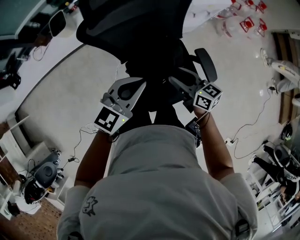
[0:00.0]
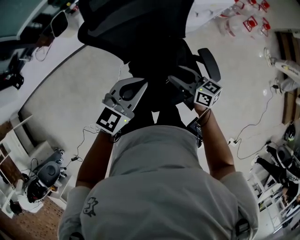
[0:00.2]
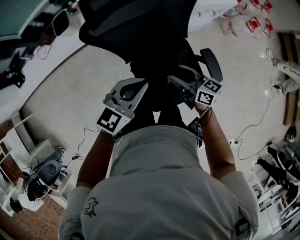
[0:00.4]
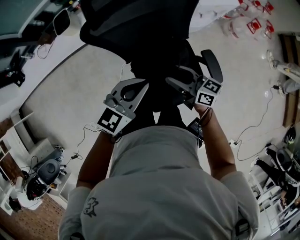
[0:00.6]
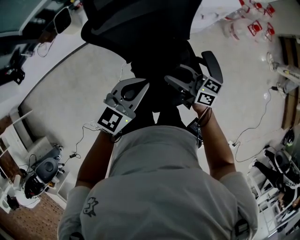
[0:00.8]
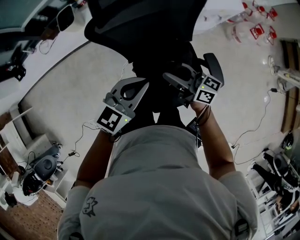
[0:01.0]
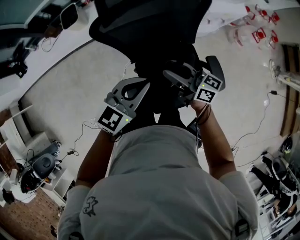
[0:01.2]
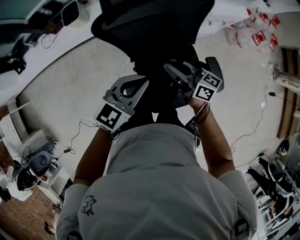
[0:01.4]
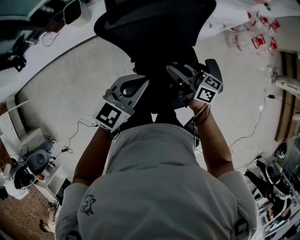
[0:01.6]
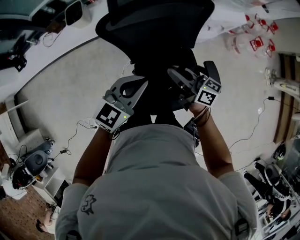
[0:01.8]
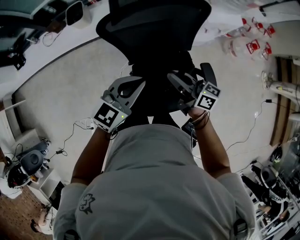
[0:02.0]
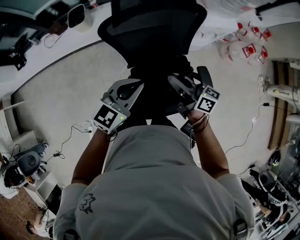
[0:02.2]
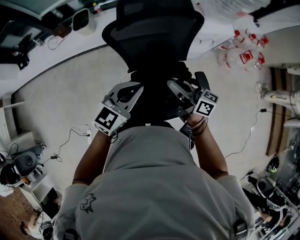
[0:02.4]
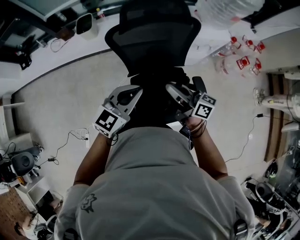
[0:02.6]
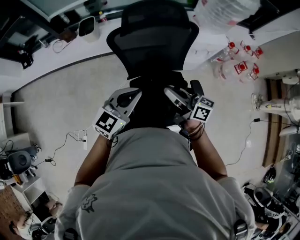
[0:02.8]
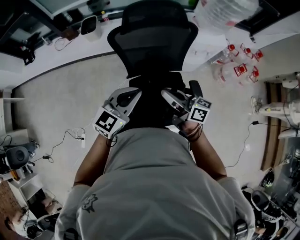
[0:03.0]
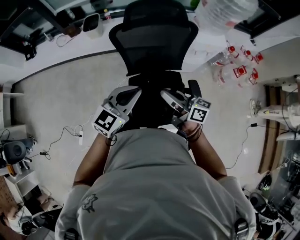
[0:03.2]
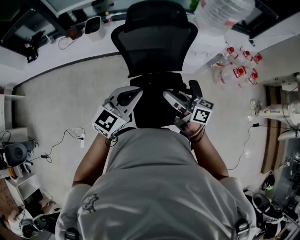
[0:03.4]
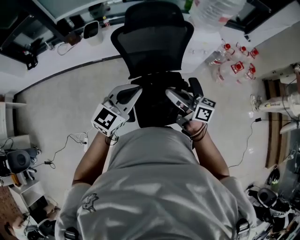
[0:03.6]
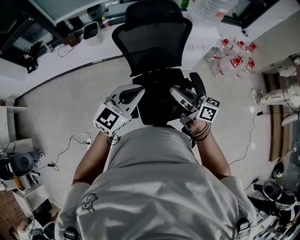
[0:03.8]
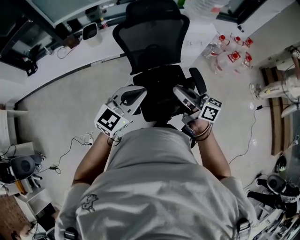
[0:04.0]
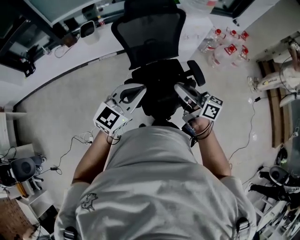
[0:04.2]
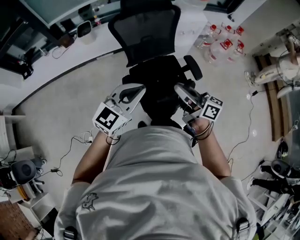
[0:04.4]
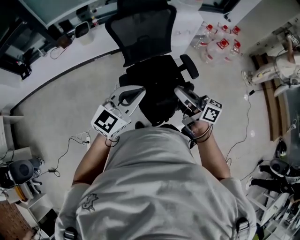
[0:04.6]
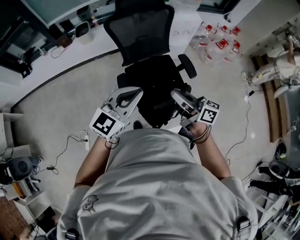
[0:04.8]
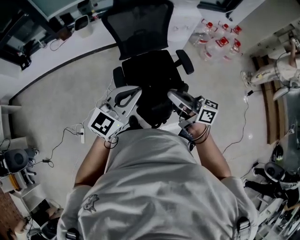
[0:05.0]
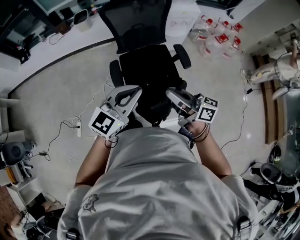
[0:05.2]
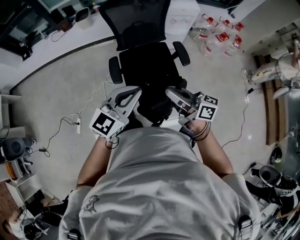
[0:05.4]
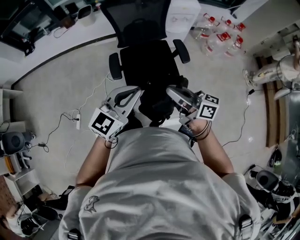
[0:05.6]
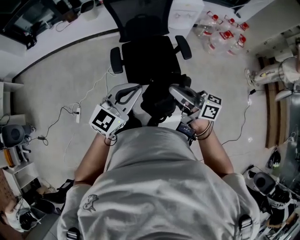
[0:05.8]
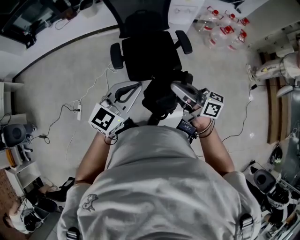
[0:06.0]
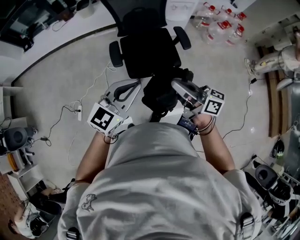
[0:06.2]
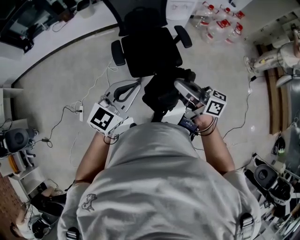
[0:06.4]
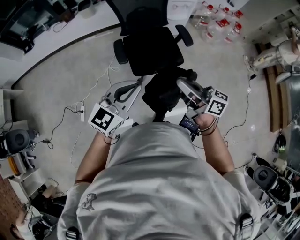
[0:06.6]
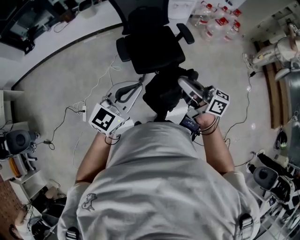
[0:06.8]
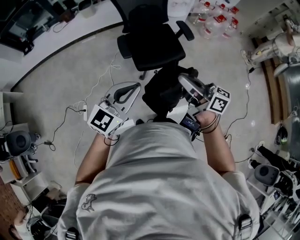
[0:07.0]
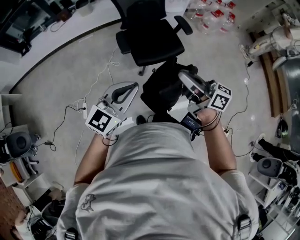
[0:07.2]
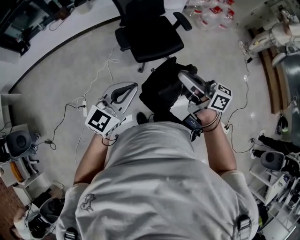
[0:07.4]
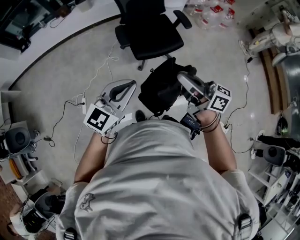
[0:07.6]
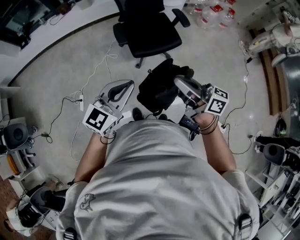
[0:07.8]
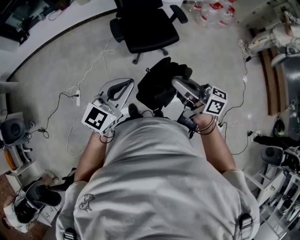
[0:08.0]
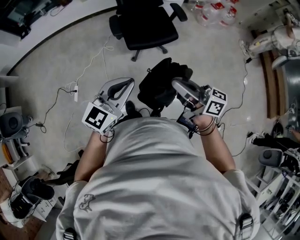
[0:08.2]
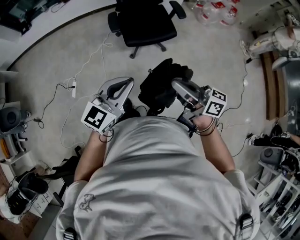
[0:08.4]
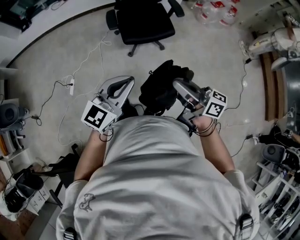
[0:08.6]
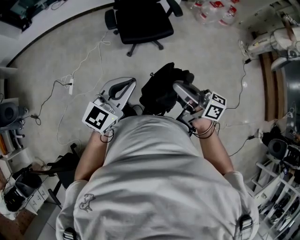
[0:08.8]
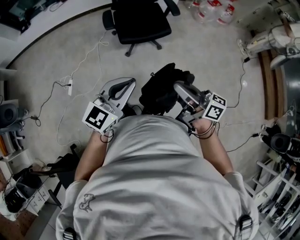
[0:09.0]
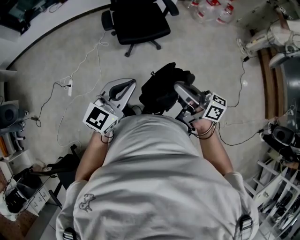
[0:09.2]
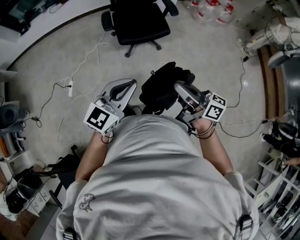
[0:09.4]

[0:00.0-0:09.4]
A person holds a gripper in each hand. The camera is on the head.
0:00.0 to 0:01.6: The right gripper travels to the left, forward and upward by roughly 10 cm, rotates approximately 20 degrees, and closes.
0:01.6 to 0:03.2: The grippers both shift backward and upward by roughly 15 cm.
0:03.2 to 0:04.8: The grippers both shift backward by some 25 cm.
0:04.8 to 0:06.2: The left gripper moves backward, about 15 cm. The right gripper is displaced backward and to the right by roughly 20 cm.
0:06.2 to 0:07.8: The grippers both shift backward and to the left by about 20 cm.
0:07.8 to 0:09.4: The two grippers go approximately 20 cm to the right and backward.

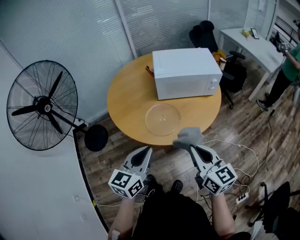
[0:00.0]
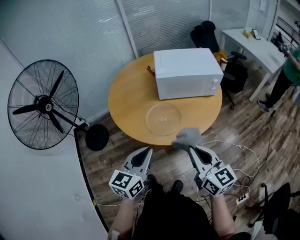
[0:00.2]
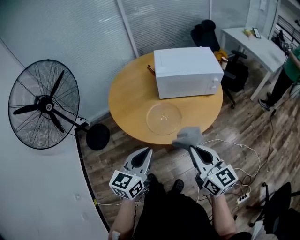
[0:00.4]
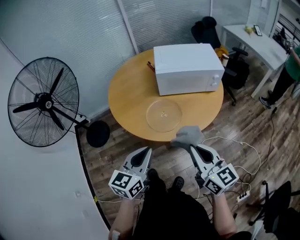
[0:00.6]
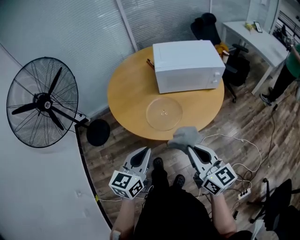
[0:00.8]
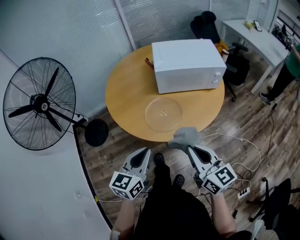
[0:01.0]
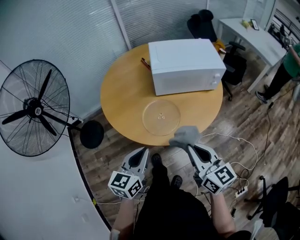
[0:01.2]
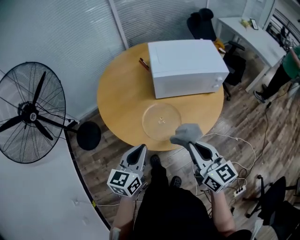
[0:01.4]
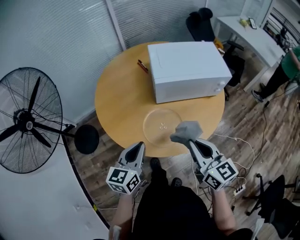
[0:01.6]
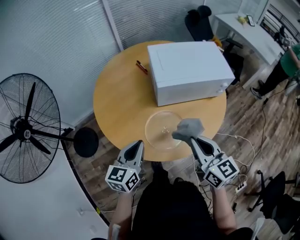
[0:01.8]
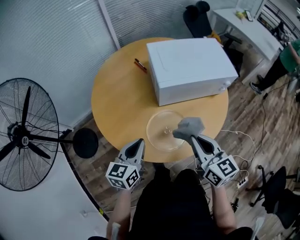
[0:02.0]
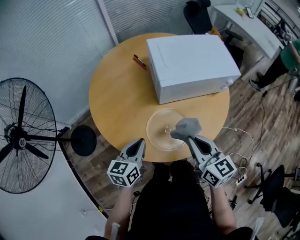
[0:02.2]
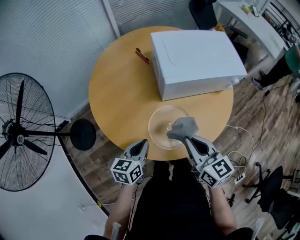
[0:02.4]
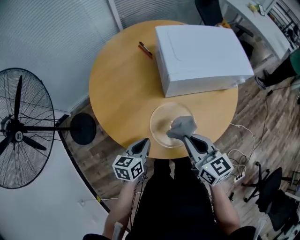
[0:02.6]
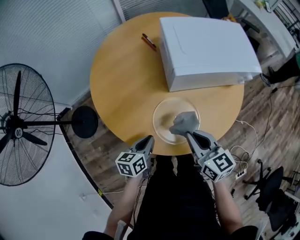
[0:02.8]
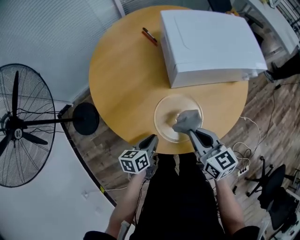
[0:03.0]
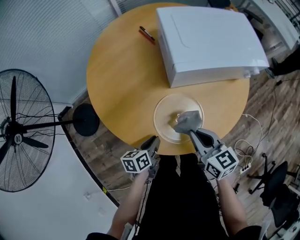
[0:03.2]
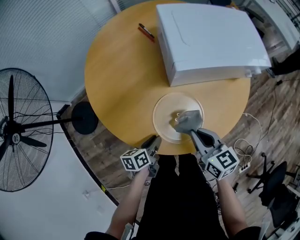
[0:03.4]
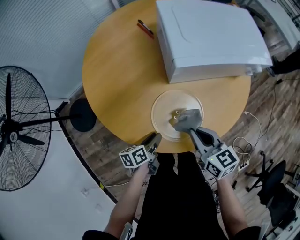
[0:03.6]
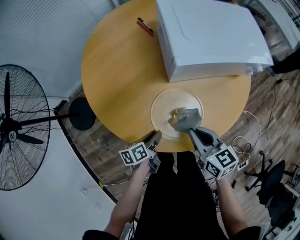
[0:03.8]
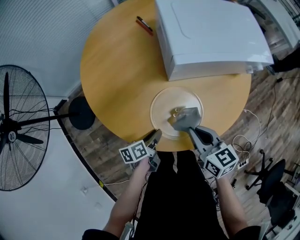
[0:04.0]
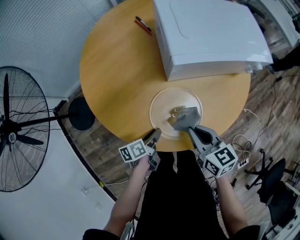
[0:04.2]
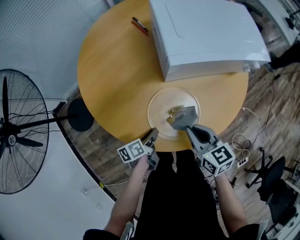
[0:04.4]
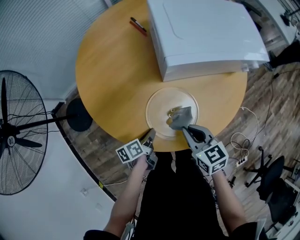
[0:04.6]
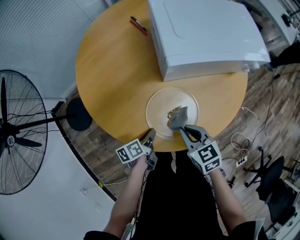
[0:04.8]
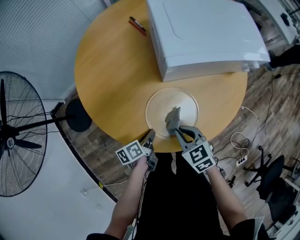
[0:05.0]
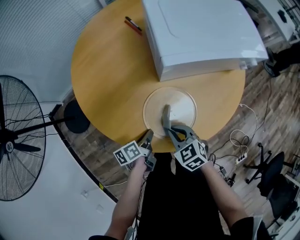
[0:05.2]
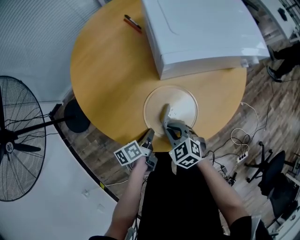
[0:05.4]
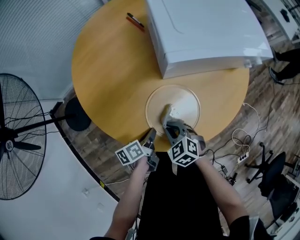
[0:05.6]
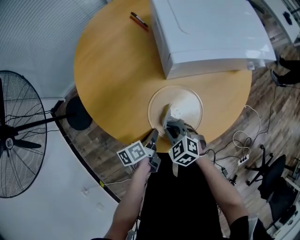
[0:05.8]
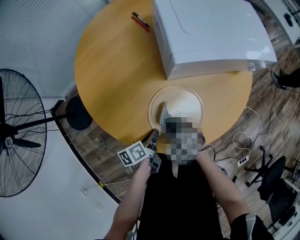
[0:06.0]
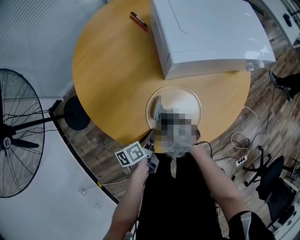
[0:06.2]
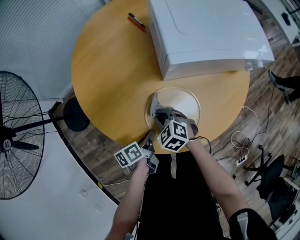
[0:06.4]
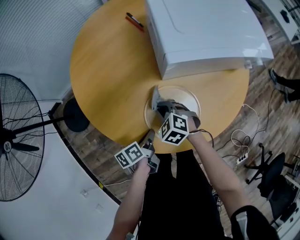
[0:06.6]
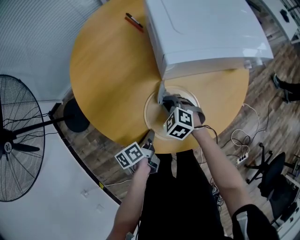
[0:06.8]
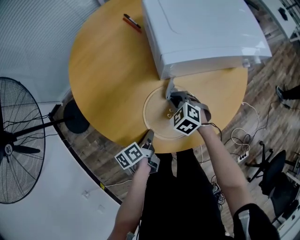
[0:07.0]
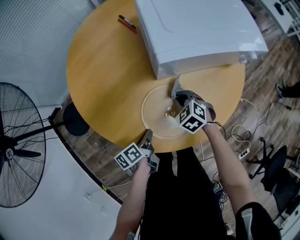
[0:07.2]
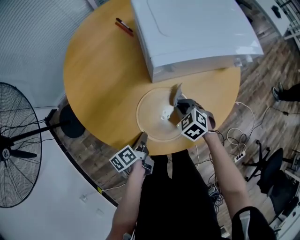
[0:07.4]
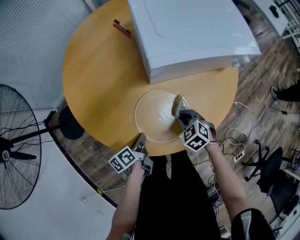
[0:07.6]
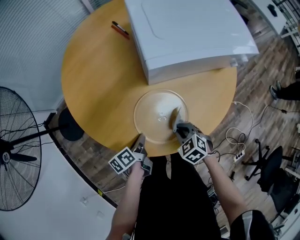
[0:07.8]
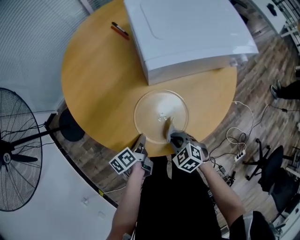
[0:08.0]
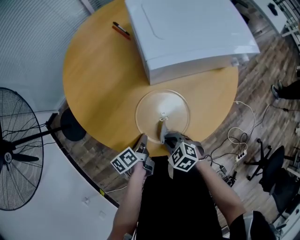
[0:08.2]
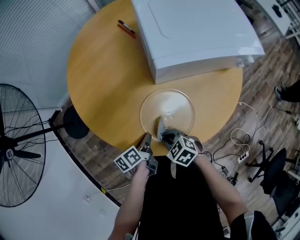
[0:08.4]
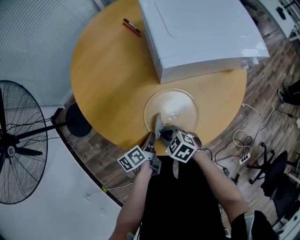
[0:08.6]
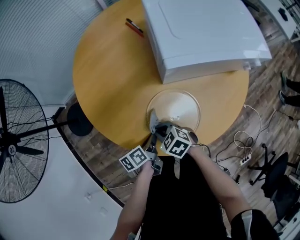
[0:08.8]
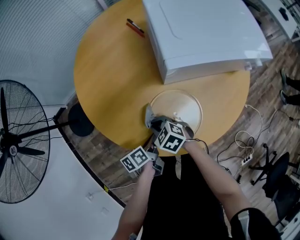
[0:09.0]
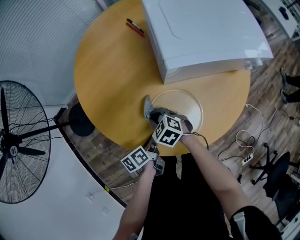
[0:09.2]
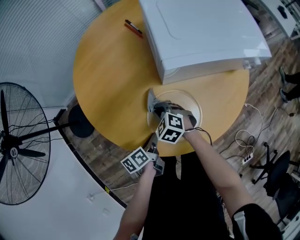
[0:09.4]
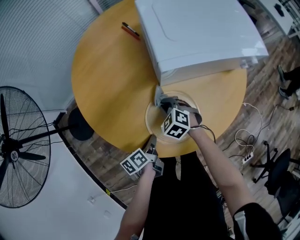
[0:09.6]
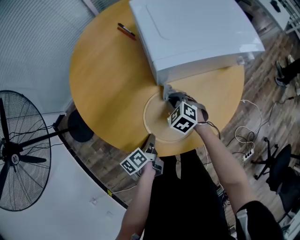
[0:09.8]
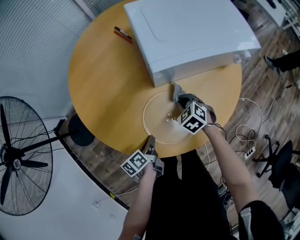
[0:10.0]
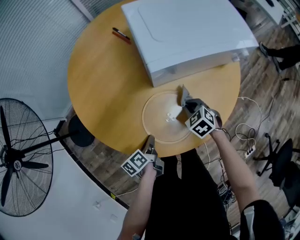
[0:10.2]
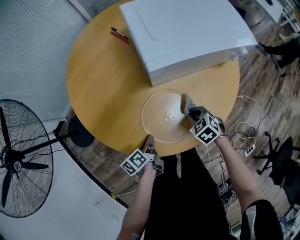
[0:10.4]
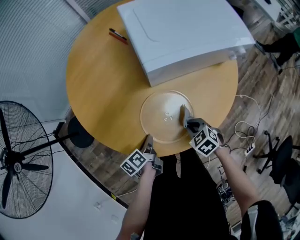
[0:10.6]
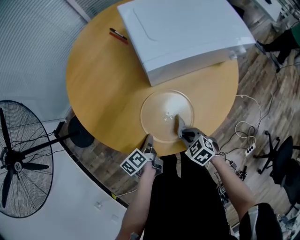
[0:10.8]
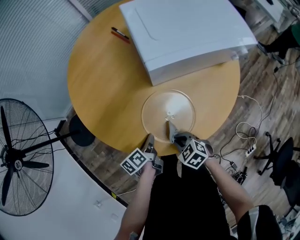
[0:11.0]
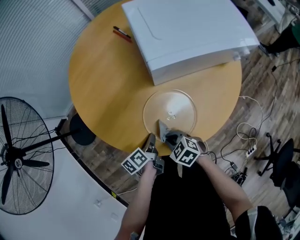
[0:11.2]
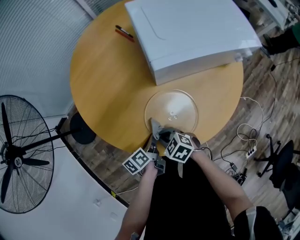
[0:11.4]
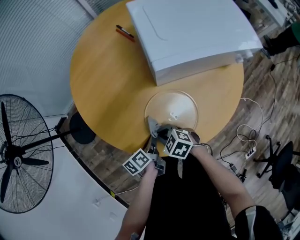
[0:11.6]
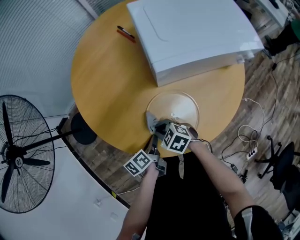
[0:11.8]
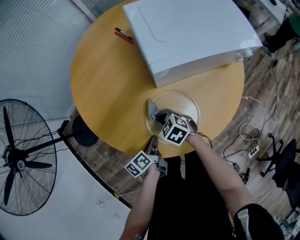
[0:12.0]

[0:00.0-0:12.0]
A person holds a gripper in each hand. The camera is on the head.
0:00.0 to 0:01.6: The left gripper travels forward and downward by about 15 cm. Meanwhile the right gripper shifts about 15 cm forward.
0:01.6 to 0:03.0: The right gripper travels downward, forward and to the left by about 20 cm, while the left gripper shifts about 20 cm downward, and swivels approximately 40 degrees.
0:03.0 to 0:04.4: Both grippers move downward, some 5 cm. The left gripper swivels roughly 30 degrees.
0:04.4 to 0:06.0: The right gripper shifts roughly 15 cm downward and to the left, and swivels approximately 50 degrees.
0:06.0 to 0:07.6: The right gripper heads to the right, covering roughly 15 cm.
0:07.6 to 0:09.0: The right gripper heads to the left, covering about 20 cm, and changes its angle by about 20 degrees.
0:09.0 to 0:10.4: The right gripper is displaced to the right by roughly 20 cm, and rotates about 30 degrees.
0:10.4 to 0:12.0: The right gripper travels to the left and forward by some 15 cm.

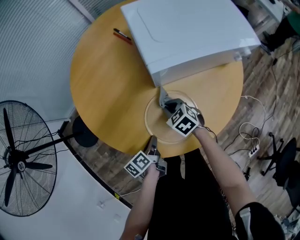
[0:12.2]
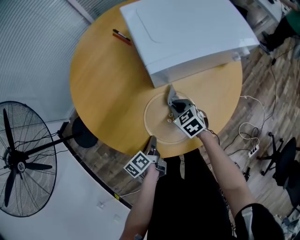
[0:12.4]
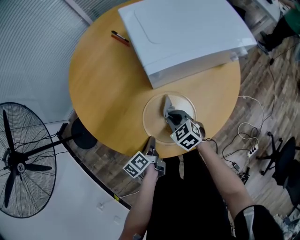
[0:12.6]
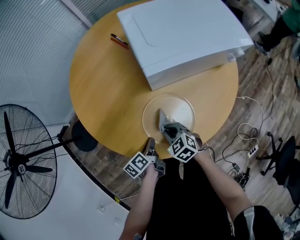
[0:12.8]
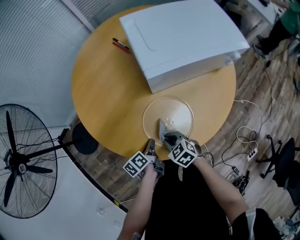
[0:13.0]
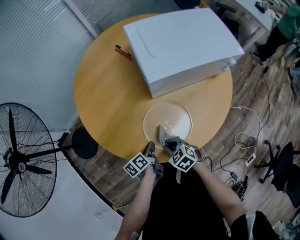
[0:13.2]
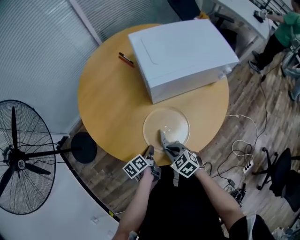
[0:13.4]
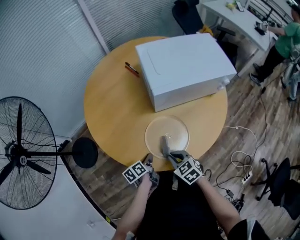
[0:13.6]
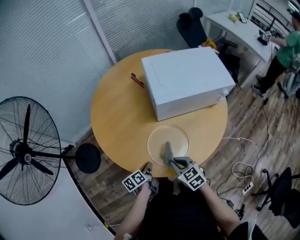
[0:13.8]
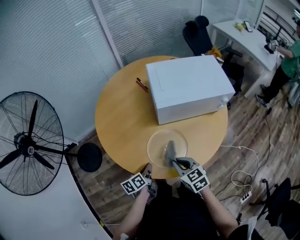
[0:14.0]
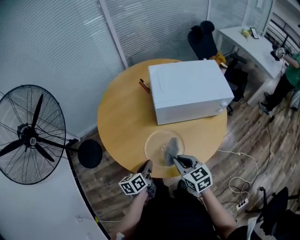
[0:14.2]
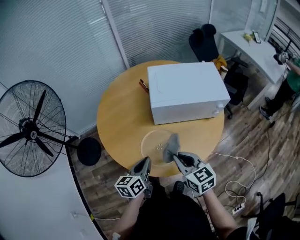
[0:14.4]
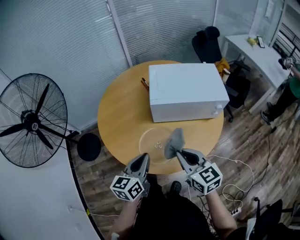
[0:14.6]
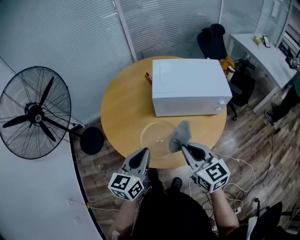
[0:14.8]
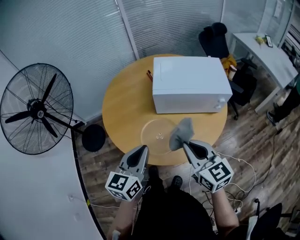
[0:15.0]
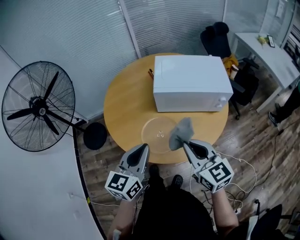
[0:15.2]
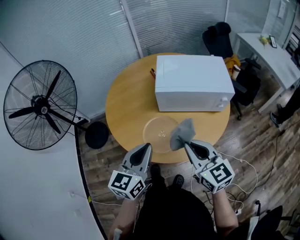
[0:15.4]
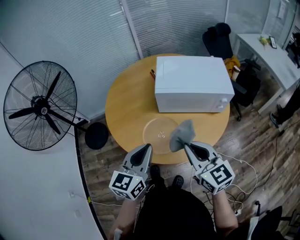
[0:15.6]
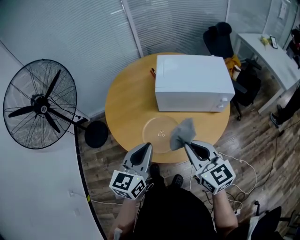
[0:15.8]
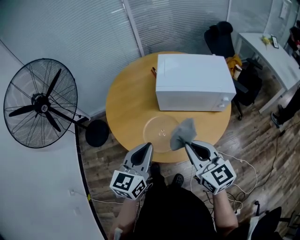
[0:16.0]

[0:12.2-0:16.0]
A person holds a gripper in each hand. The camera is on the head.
0:12.2 to 0:13.4: The right gripper shifts some 15 cm backward.
0:13.4 to 0:14.8: The right gripper travels upward and to the right by roughly 35 cm, and tilts its fingers roughly 40 degrees upward. Meanwhile the left gripper travels upward by about 35 cm, and rolls clockwise, seen from behind, by about 50 degrees.
0:14.8 to 0:16.0: The grippers stay close to where they were, moving slightly.
